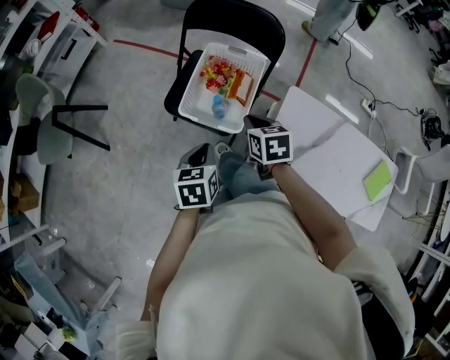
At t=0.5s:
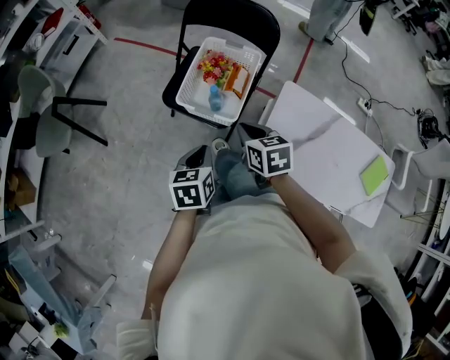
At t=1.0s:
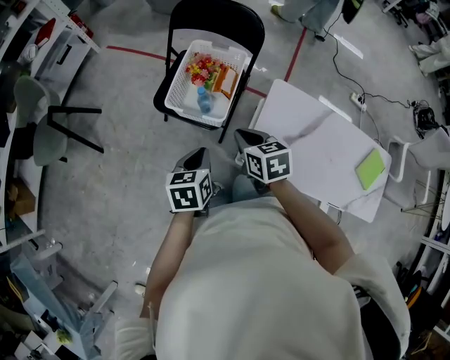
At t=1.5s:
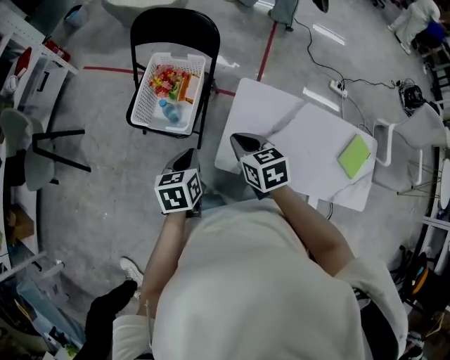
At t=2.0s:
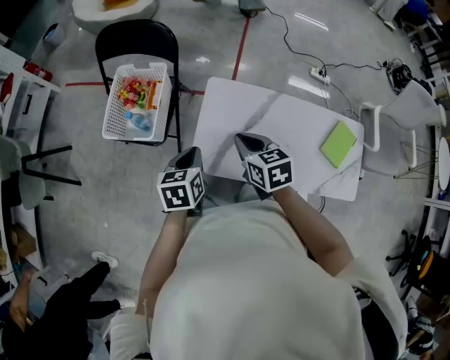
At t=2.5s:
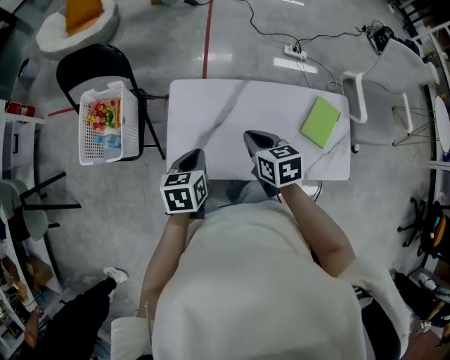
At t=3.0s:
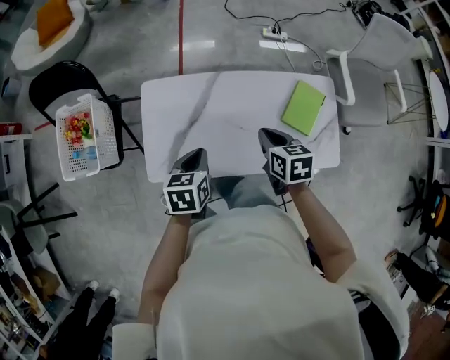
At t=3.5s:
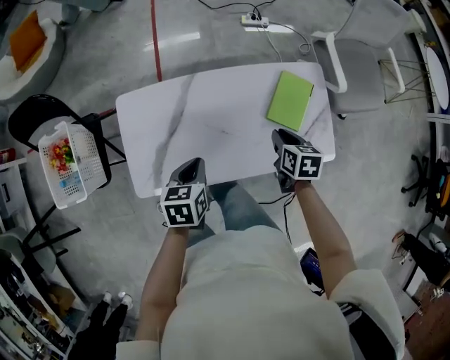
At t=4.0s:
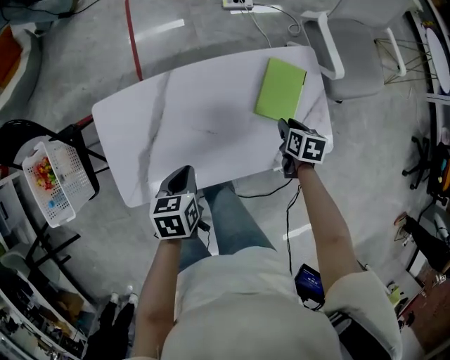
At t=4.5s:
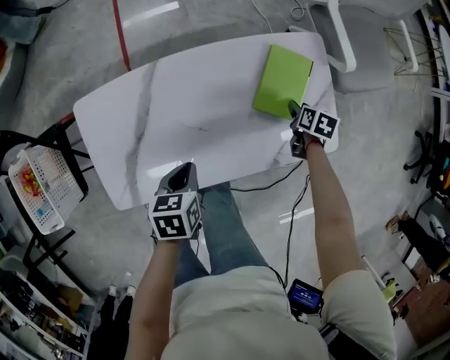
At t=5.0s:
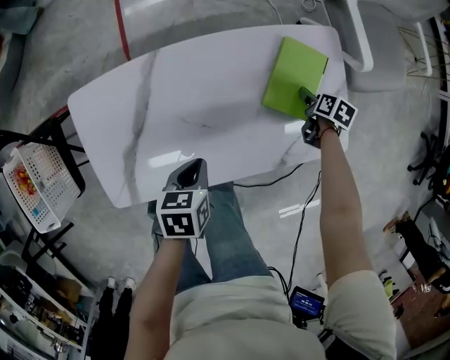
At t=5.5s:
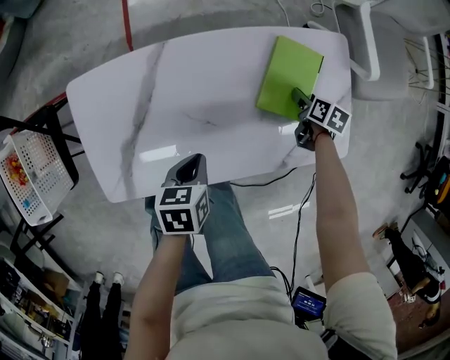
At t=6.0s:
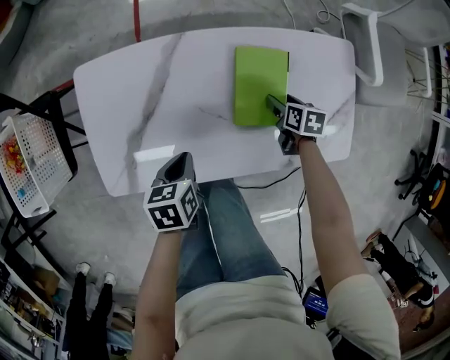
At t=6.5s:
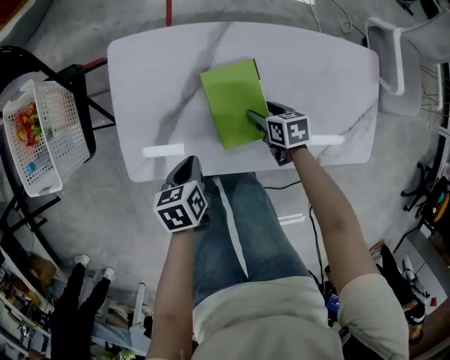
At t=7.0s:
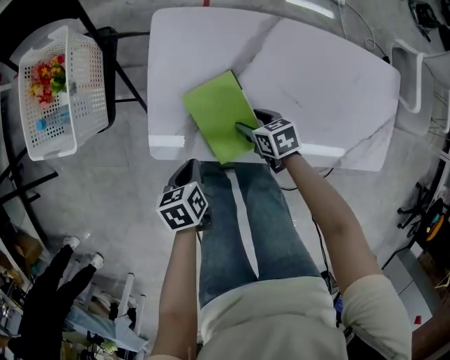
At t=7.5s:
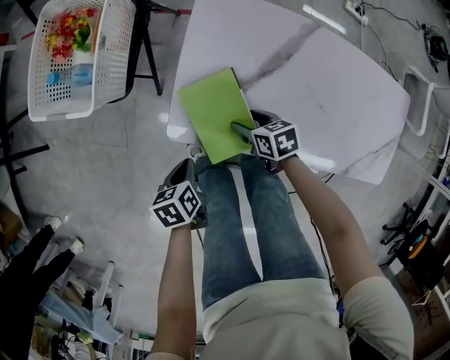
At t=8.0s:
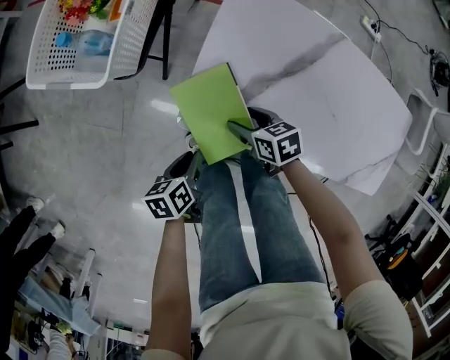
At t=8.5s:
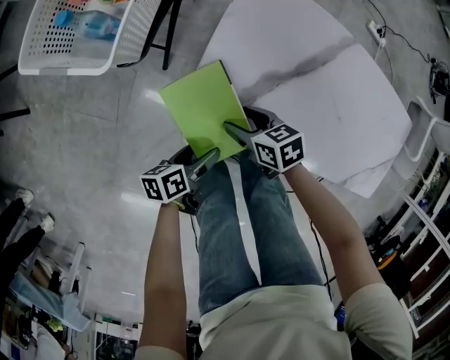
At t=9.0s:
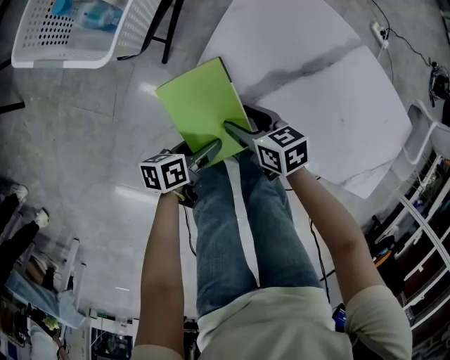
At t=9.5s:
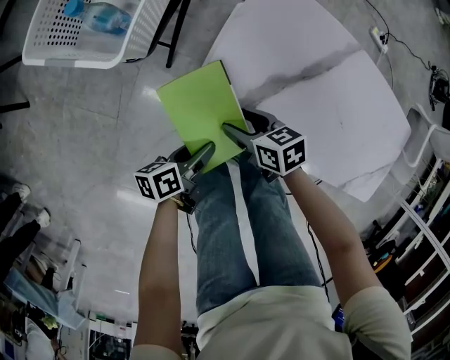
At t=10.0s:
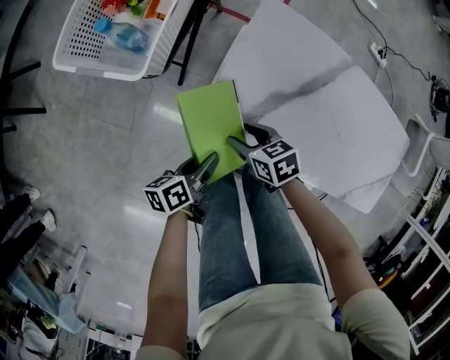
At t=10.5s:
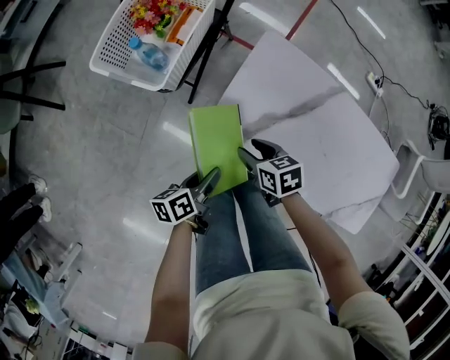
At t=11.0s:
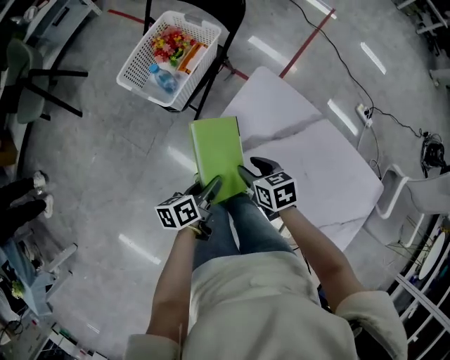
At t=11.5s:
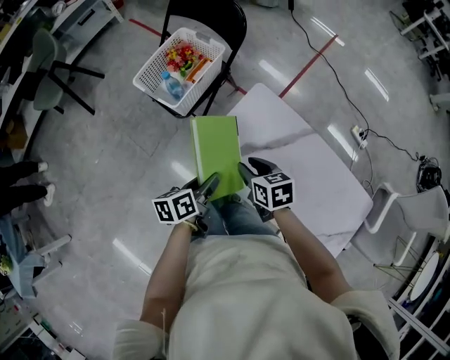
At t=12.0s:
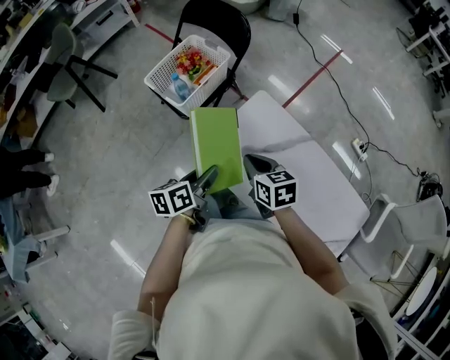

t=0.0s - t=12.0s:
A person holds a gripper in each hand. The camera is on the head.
t=0.0s - t=2.0s: The right gripper moves to the right and backward, roughly 30 cm, while the left gripper is displaced to the right by some 25 cm.
t=2.0s - t=4.0s: The left gripper moves some 40 cm, and swivels approximately 30 degrees; the right gripper ends up roughly 60 cm from where it was, and rotates about 60 degrees.
t=4.0s - t=6.0s: The right gripper travels downward and to the left by about 15 cm, while the left gripper is displaced downward by about 10 cm.
t=6.0s - t=8.0s: The left gripper moves about 35 cm, and swivels roughly 40 degrees; the right gripper moves roughly 50 cm, and changes its angle by roughly 50 degrees.
t=8.0s - t=10.0s: The right gripper changes place by approximately 5 cm; the left gripper turns by some 20 degrees, and opens and closes again.
t=10.0s - t=12.0s: The grippers both shift upward by about 30 cm. The left gripper changes its angle by some 30 degrees. The right gripper swivels roughly 20 degrees, and closes its fingers.

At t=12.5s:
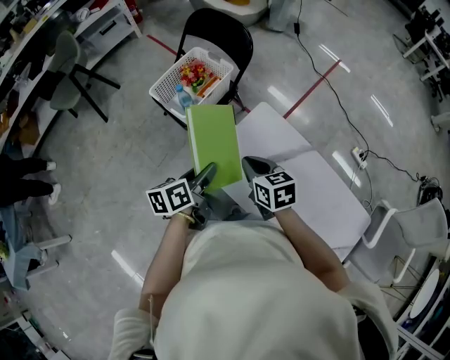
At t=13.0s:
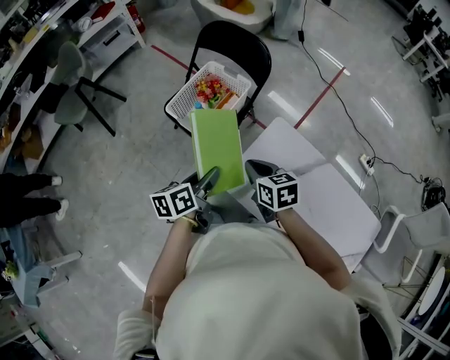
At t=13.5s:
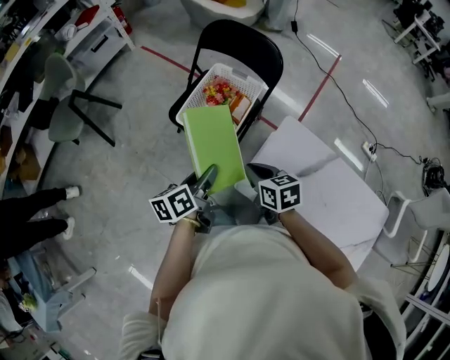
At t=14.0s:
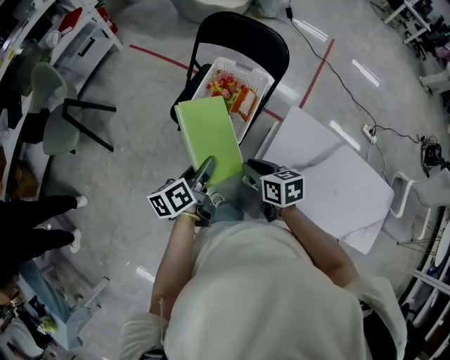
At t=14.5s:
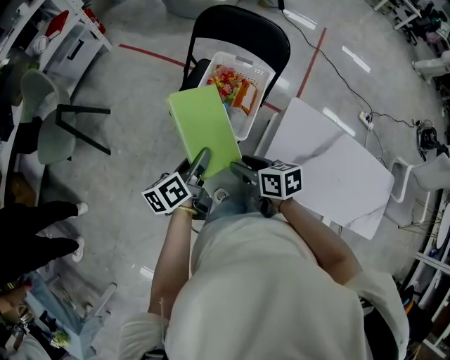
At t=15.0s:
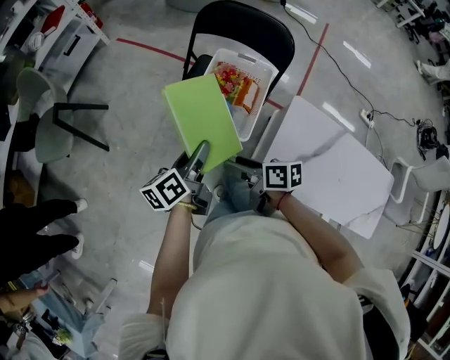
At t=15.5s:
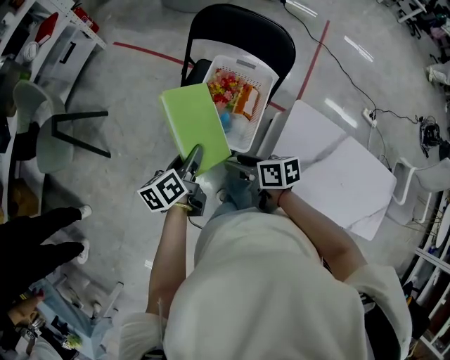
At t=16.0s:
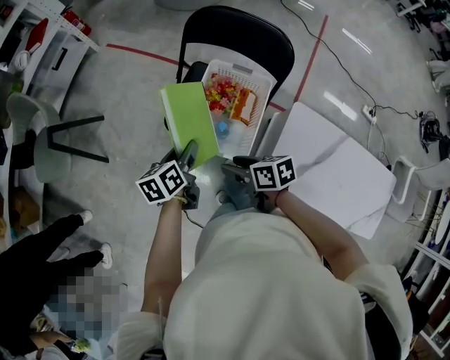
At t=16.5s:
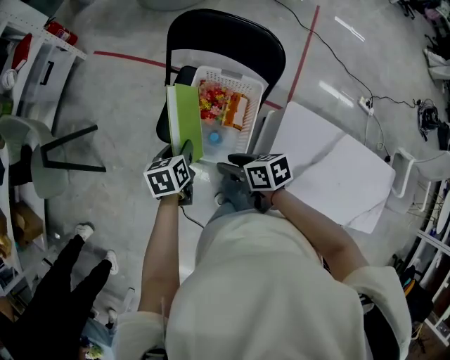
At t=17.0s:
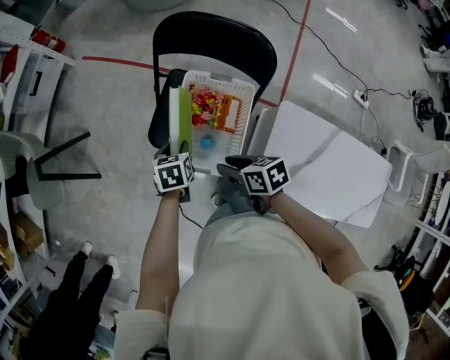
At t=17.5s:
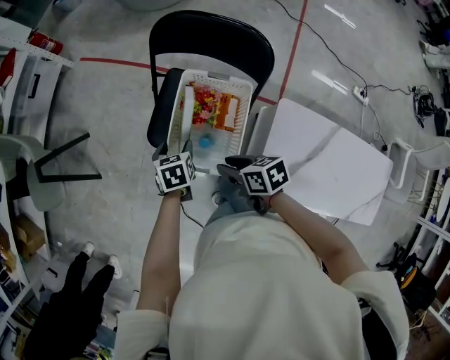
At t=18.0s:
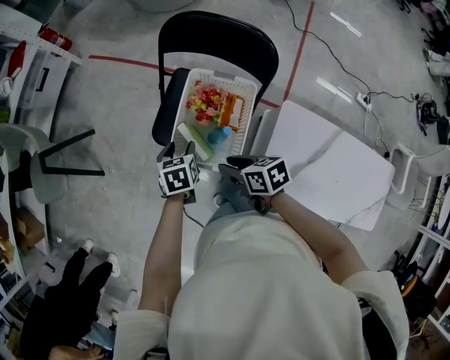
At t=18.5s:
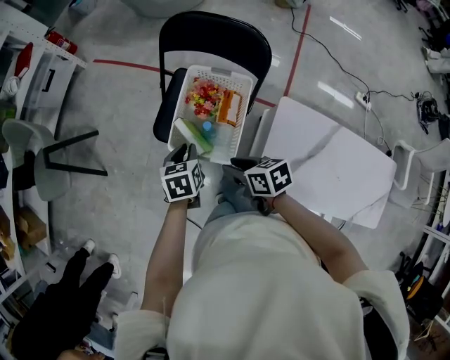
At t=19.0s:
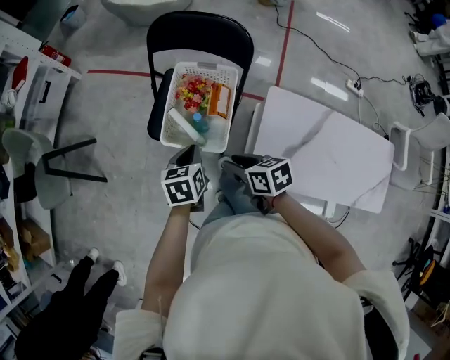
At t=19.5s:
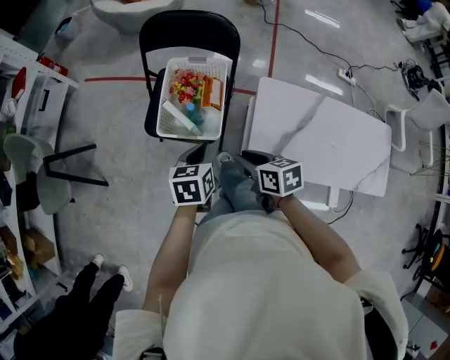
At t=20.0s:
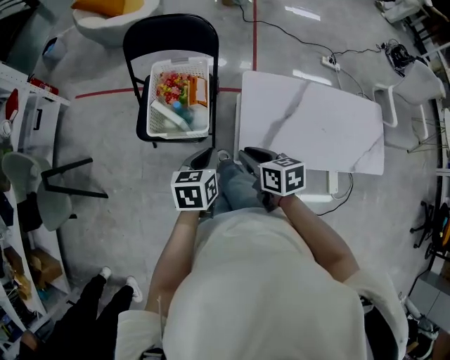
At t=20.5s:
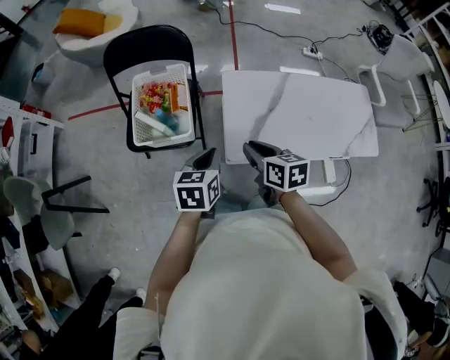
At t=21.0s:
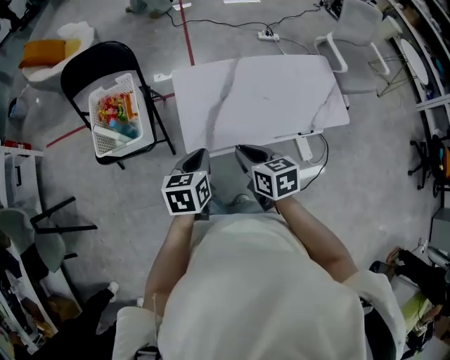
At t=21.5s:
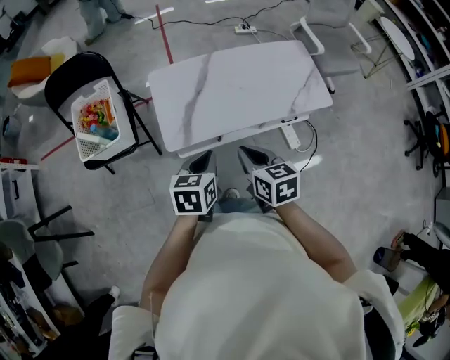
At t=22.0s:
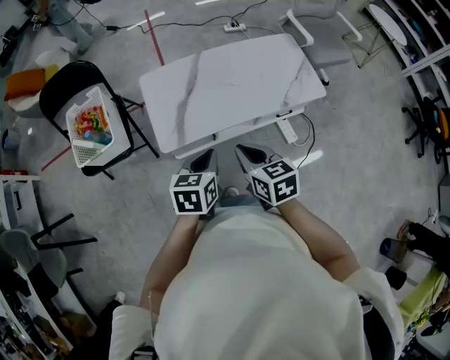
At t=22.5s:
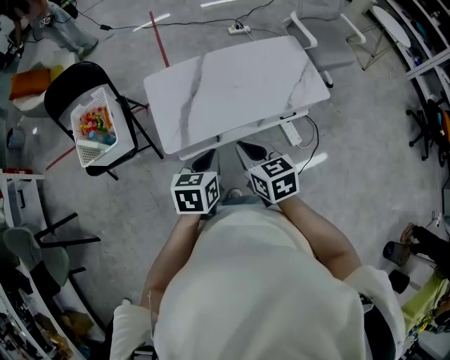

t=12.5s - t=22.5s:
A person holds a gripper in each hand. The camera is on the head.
t=12.5s - t=14.5s: The two grippers go about 35 cm to the left and forward. The right gripper turns by some 30 degrees, and opens up.
t=14.5s - t=16.5s: The right gripper travels forward by approximately 15 cm. Meanwhile the left gripper heads forward and downward, covering some 20 cm, and turns by roughly 40 degrees.
t=16.5s - t=18.5s: Both grippers travel together backward, some 5 cm. The left gripper opens and closes again.
t=18.5s - t=20.5s: The right gripper moves roughly 25 cm, and changes its angle by some 40 degrees, while the left gripper shifts by roughly 30 cm, and turns by some 30 degrees.
t=20.5s - t=22.5s: The left gripper is displaced to the right by some 30 cm. Meanwhile the right gripper is displaced to the right and backward by approximately 30 cm.

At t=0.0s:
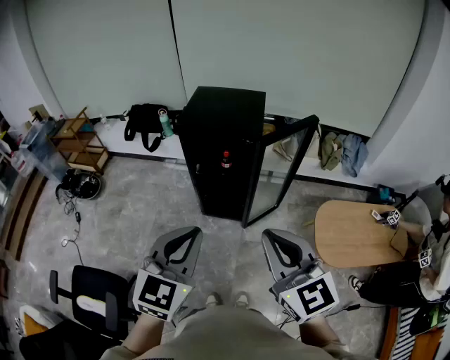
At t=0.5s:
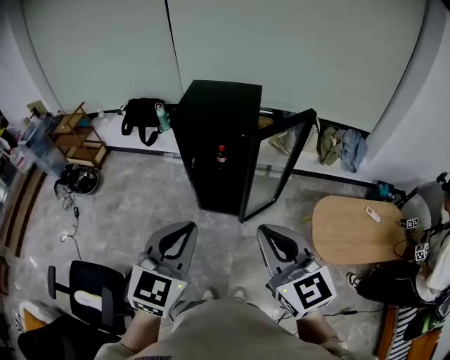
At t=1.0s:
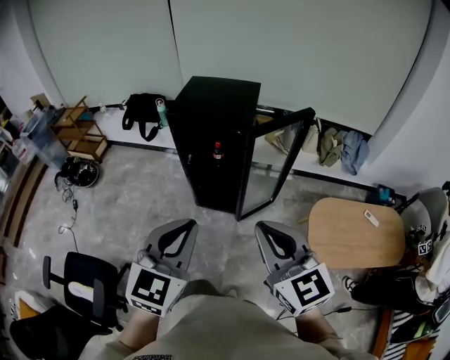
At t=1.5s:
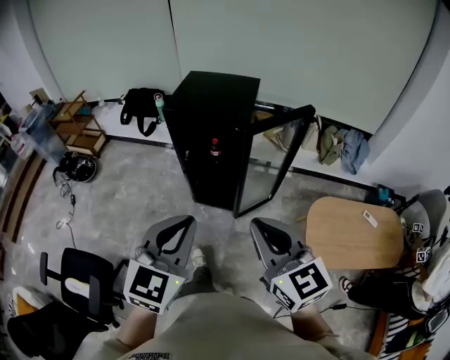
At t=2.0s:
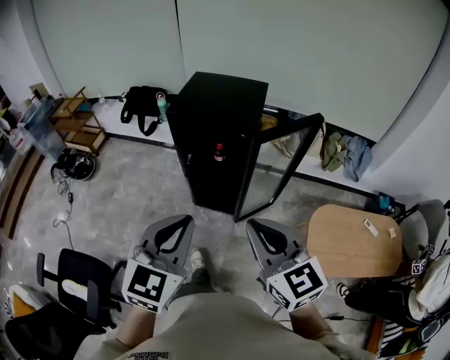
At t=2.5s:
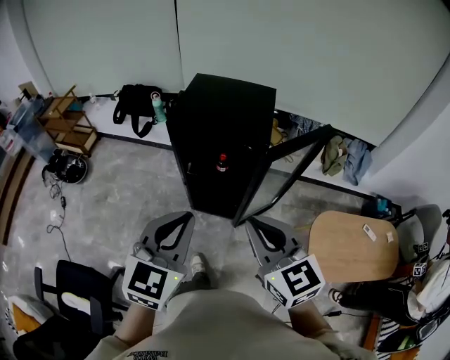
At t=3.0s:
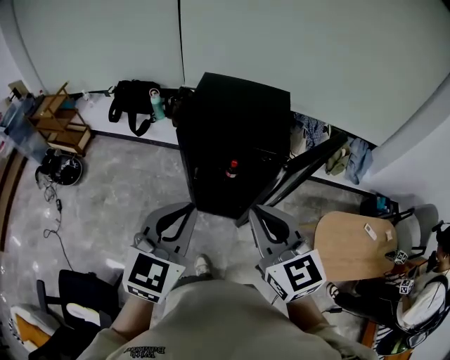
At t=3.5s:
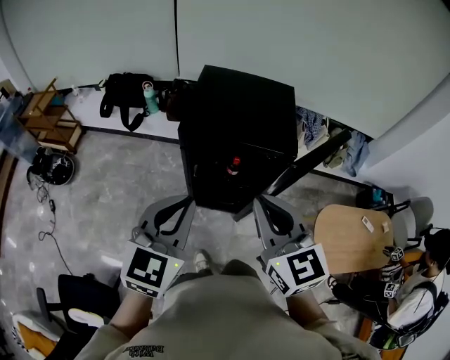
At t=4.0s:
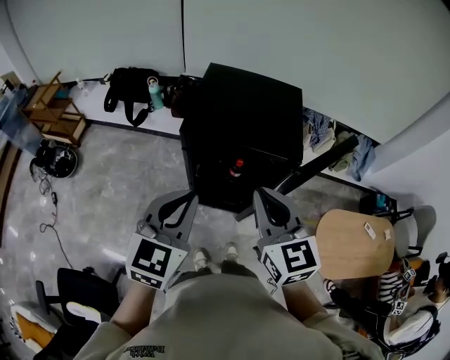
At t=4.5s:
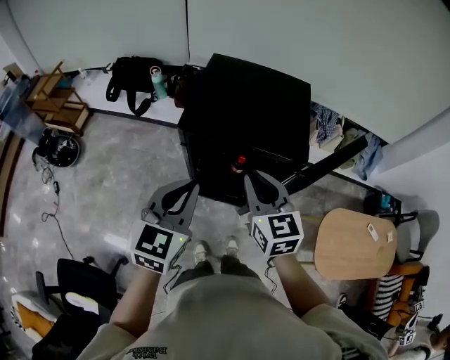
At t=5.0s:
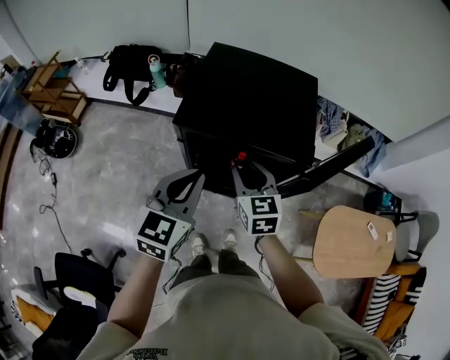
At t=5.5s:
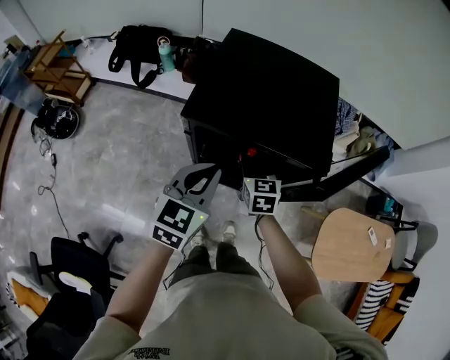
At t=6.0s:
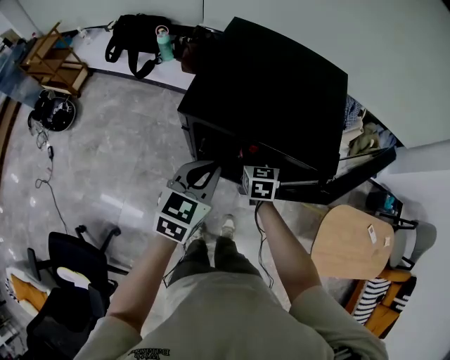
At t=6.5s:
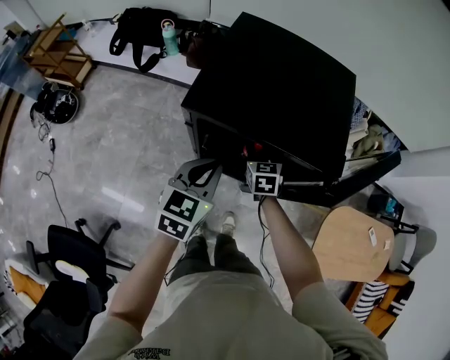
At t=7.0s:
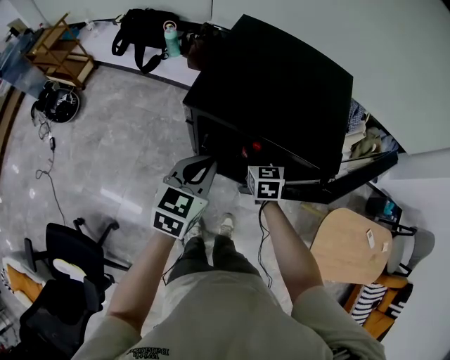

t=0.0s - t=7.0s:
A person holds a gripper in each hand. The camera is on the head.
t=0.0s - t=2.0s: The left gripper moves forward, roughly 5 cm. Meanwhile the right gripper travels forward and downward by approximately 10 cm.
t=2.0s - t=3.5s: The grippers both shift forward and to the left by about 25 cm.
t=3.5s - t=5.0s: The right gripper is displaced downward and forward by approximately 25 cm, and opens its fingers; the left gripper travels forward and downward by approximately 15 cm.
t=5.0s - t=7.0s: The right gripper goes about 20 cm downward and forward, while the left gripper goes about 10 cm downward.
